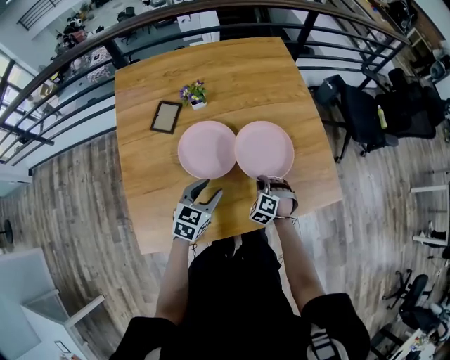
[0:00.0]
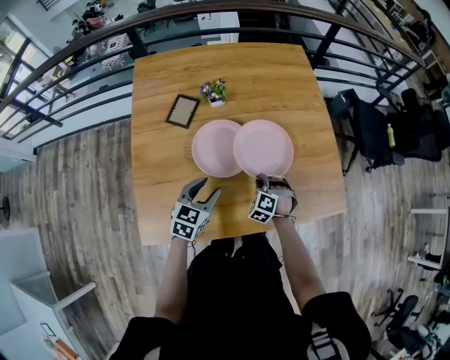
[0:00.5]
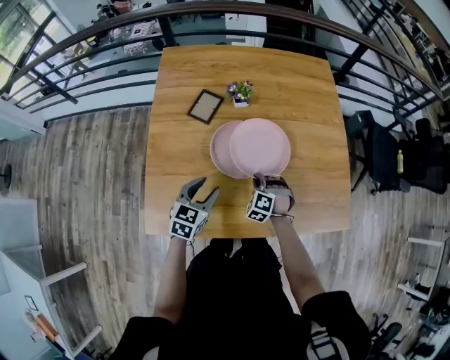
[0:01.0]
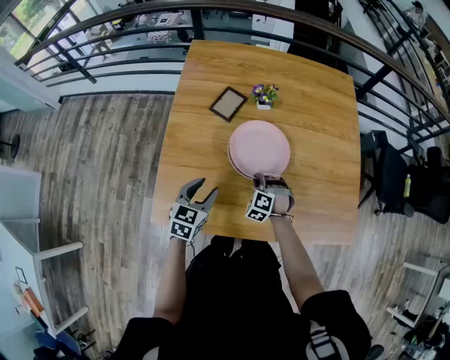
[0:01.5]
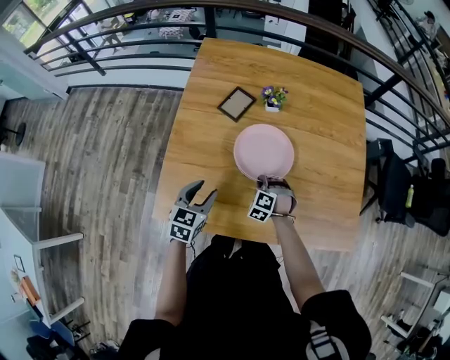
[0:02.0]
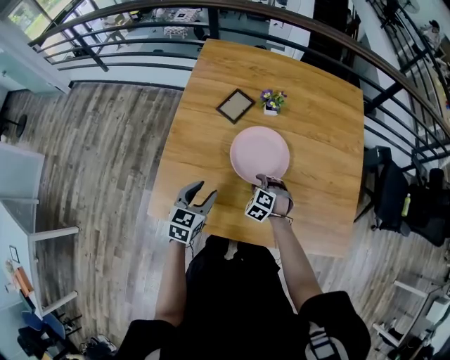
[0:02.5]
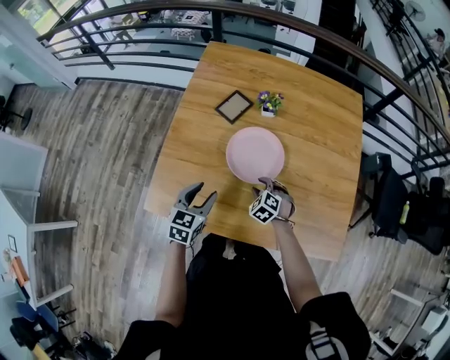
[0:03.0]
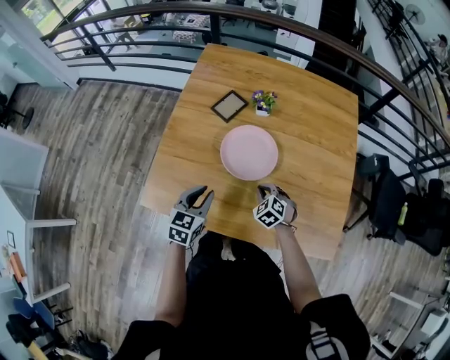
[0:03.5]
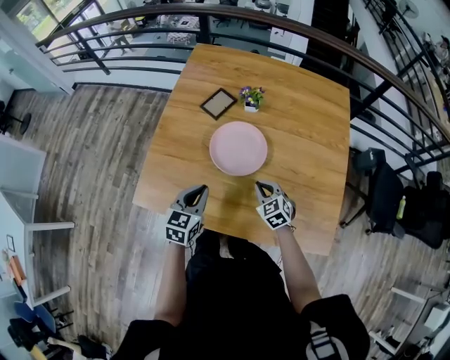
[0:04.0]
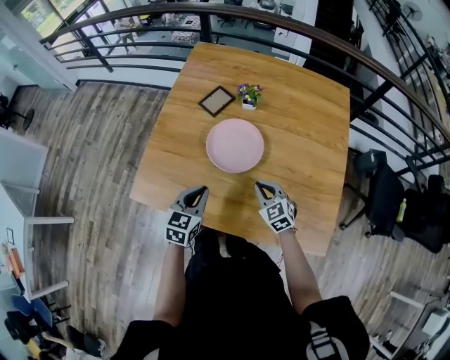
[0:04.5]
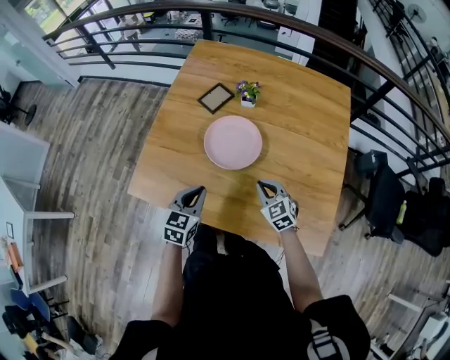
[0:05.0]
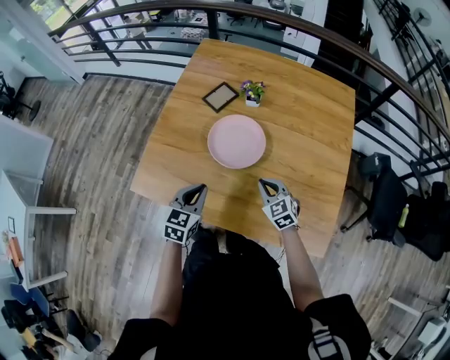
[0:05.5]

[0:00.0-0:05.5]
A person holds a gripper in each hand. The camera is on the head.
0:00.0 to 0:02.0: The left gripper moves about 15 cm, and swivels some 30 degrees, while the right gripper shifts by about 15 cm, and turns by roughly 30 degrees.
0:02.0 to 0:03.5: Both grippers move to the right, about 10 cm. The left gripper closes up. Meanwhile the right gripper rotates approximately 20 degrees, and opens, then closes again.
0:03.5 to 0:05.5: The left gripper moves some 5 cm, while the right gripper heads upward and to the right, covering roughly 10 cm, and changes its angle by approximately 20 degrees.

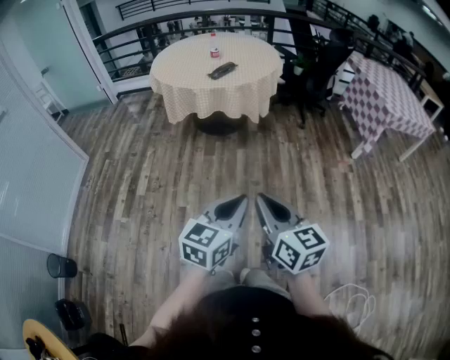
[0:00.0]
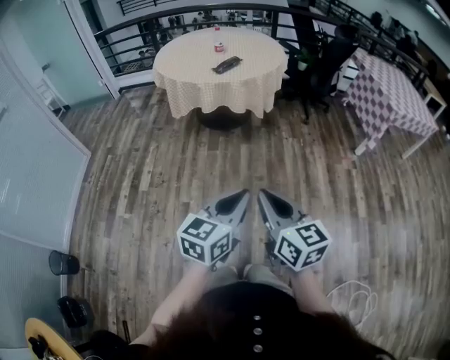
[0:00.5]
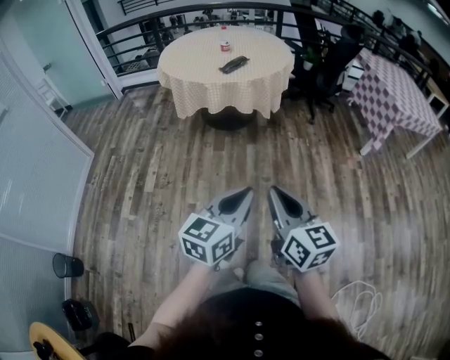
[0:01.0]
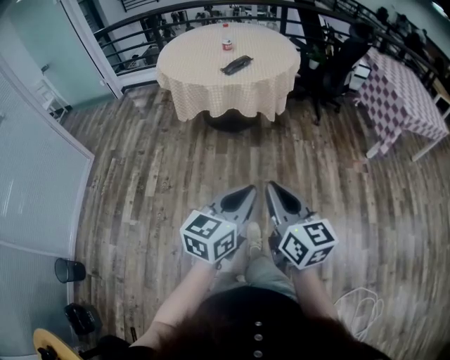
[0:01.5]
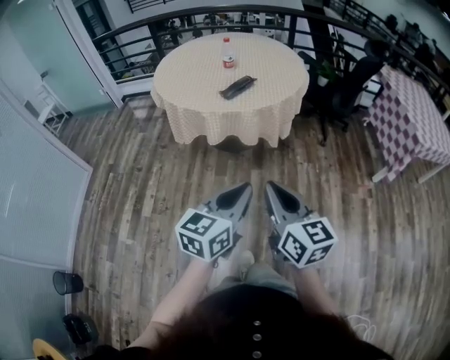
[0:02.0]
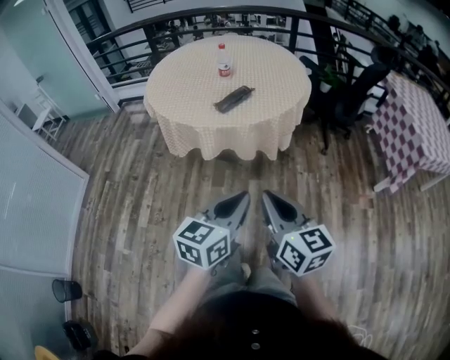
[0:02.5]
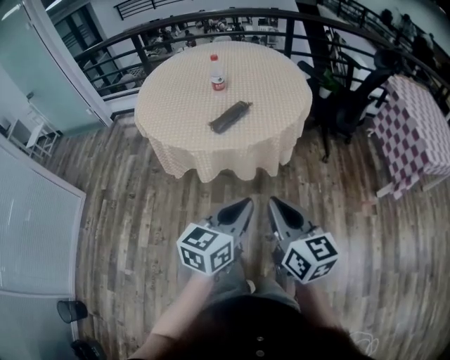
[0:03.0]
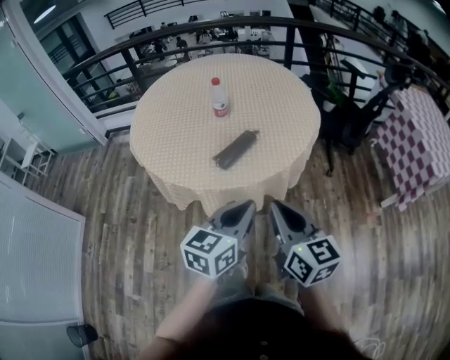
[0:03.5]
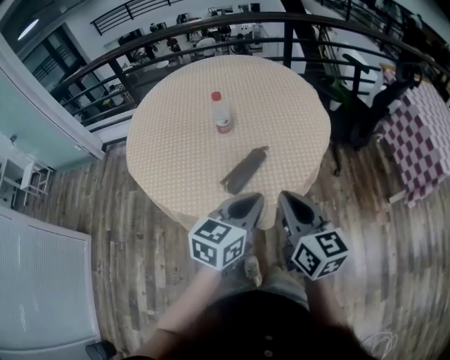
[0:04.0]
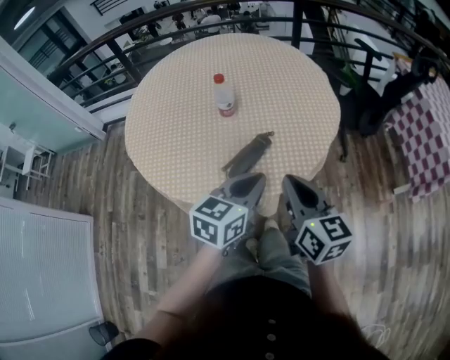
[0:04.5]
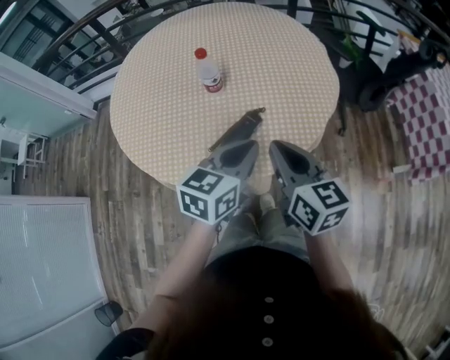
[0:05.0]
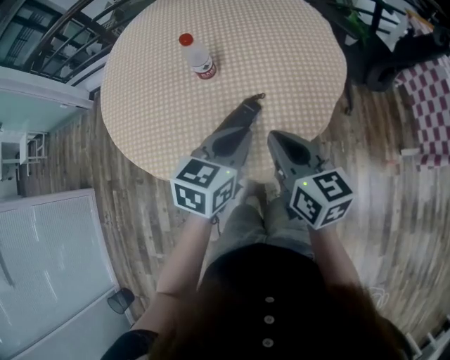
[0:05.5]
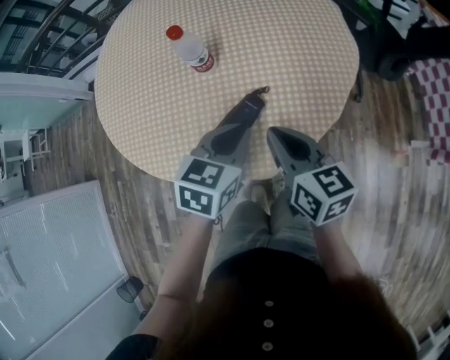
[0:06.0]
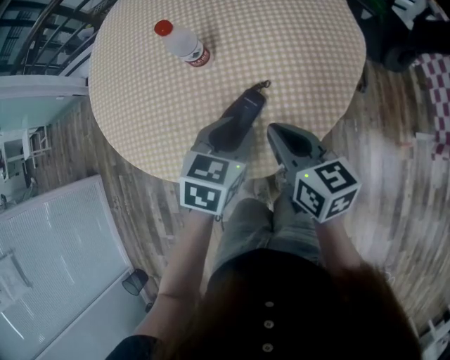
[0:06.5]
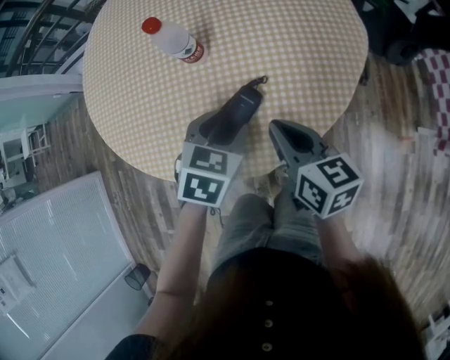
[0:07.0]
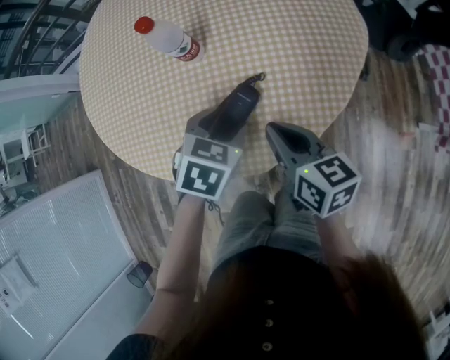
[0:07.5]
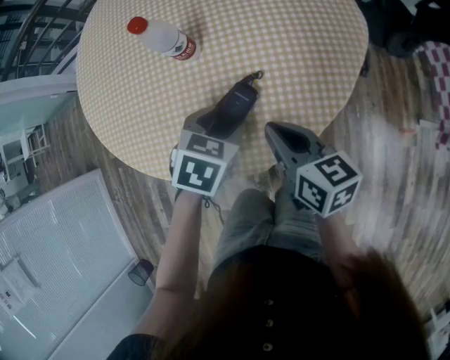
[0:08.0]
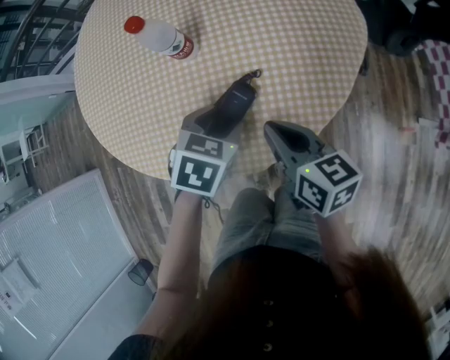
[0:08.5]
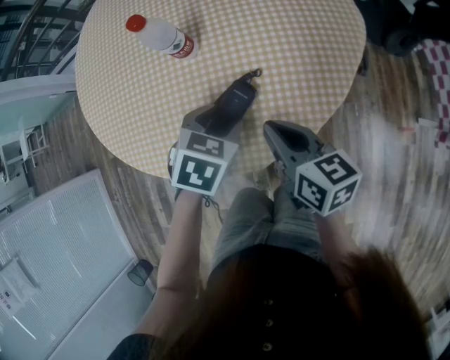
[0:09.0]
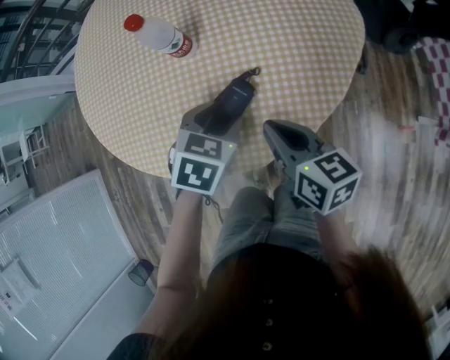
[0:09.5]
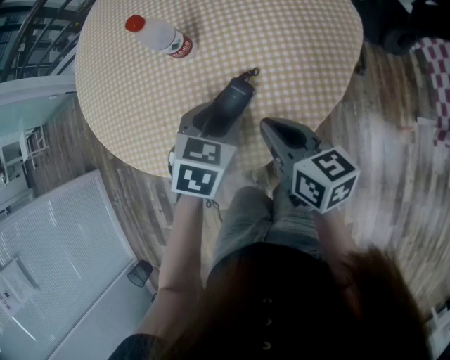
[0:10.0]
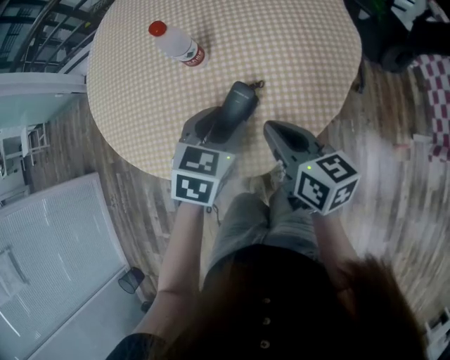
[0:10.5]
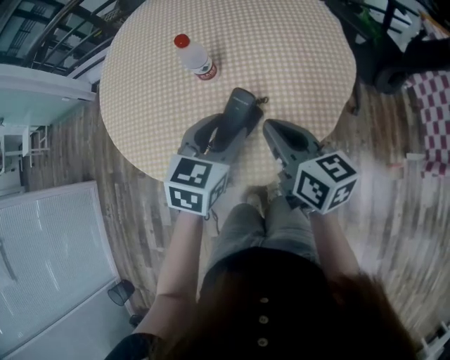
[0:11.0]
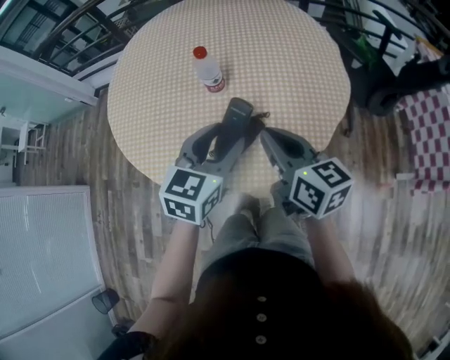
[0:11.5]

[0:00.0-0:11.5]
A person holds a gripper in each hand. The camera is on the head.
0:00.0 to 0:02.0: The two grippers go roughly 30 cm forward.
0:02.0 to 0:04.0: The two grippers travel together, forward, some 50 cm.
0:04.0 to 0:06.0: The grippers both shift forward and downward by approximately 20 cm. The left gripper swivels approximately 20 degrees.
0:06.0 to 0:07.5: The two grippers go about 5 cm downward. The left gripper changes its angle by about 20 degrees, and opens its fingers.
0:07.5 to 0:09.5: Both grippers stay about where they are.
0:09.5 to 0:11.5: The two grippers go some 15 cm upward. The left gripper tips its fingers upward by some 30 degrees.

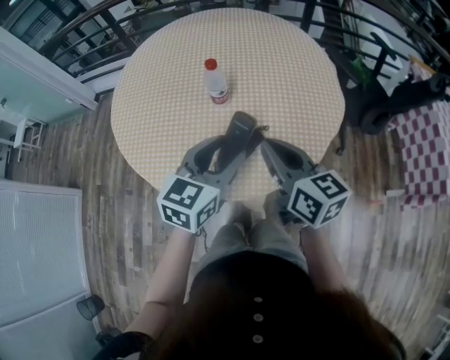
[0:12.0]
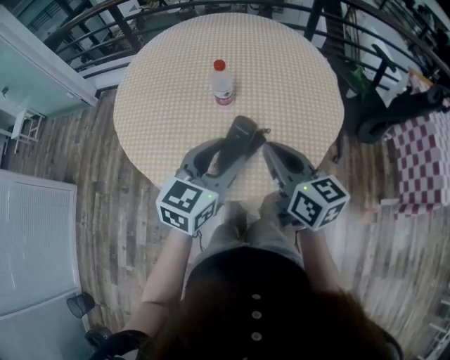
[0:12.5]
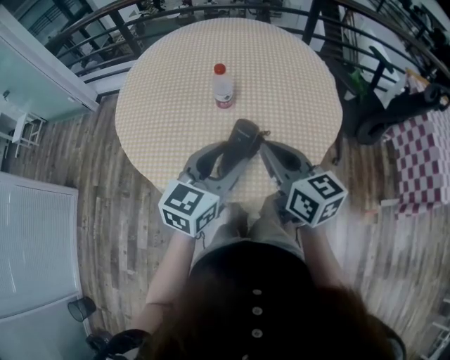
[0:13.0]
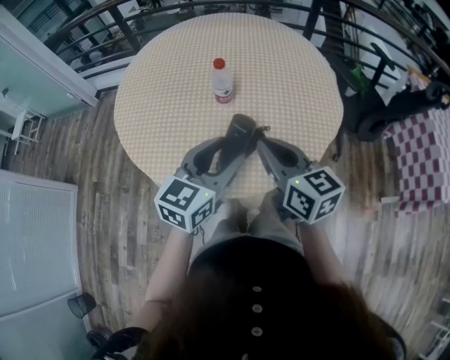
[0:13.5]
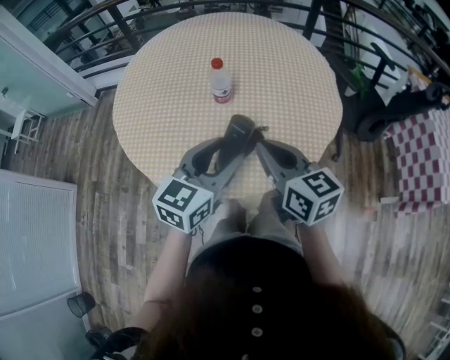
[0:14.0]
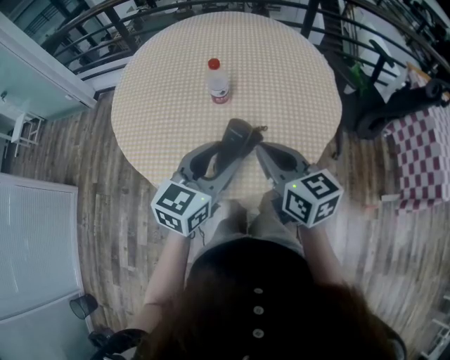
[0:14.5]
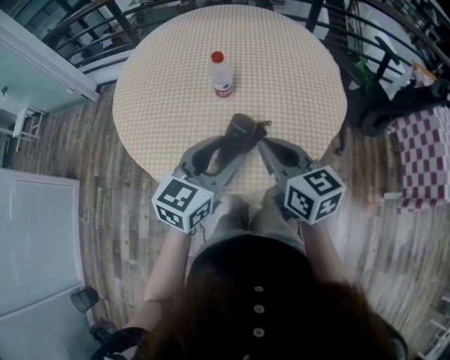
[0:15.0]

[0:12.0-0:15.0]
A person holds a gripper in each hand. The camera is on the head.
0:12.0 to 0:15.0: There are only small adjustments of the grippers.

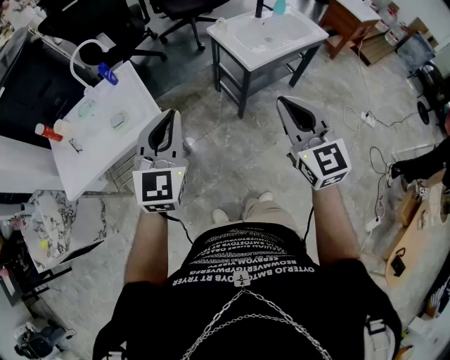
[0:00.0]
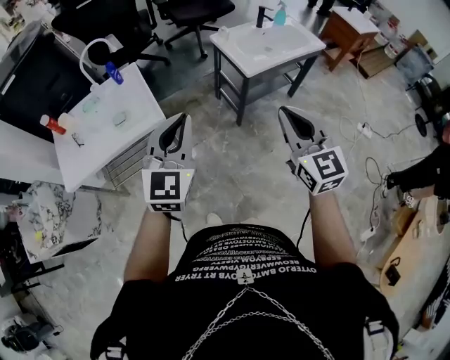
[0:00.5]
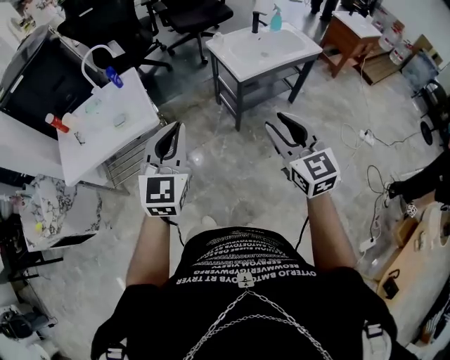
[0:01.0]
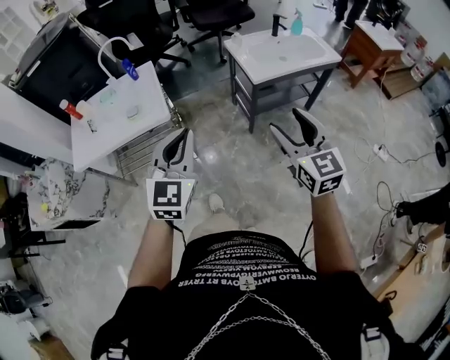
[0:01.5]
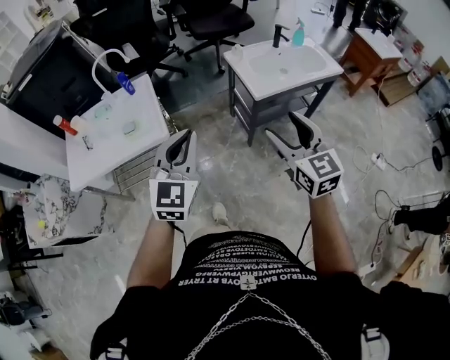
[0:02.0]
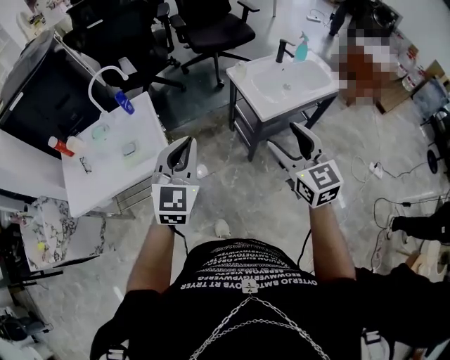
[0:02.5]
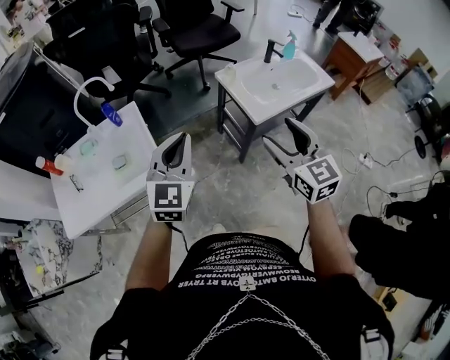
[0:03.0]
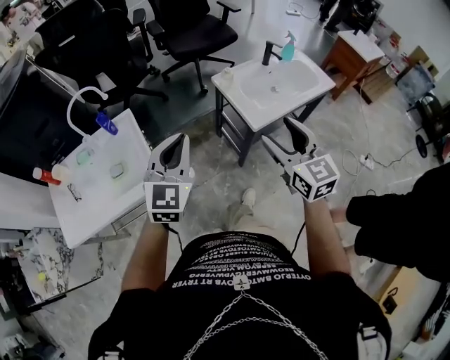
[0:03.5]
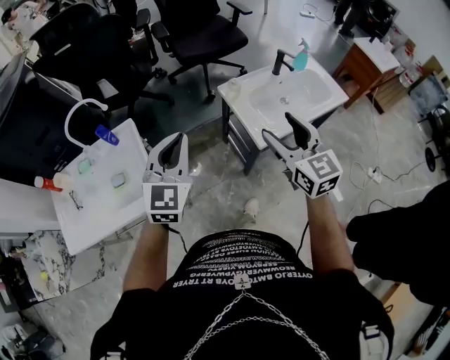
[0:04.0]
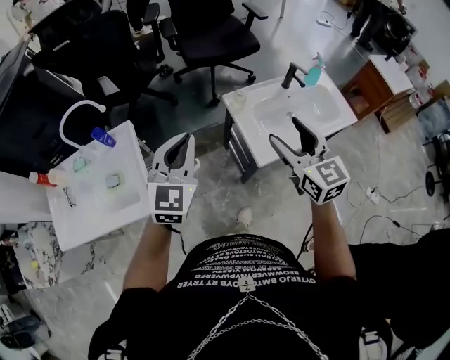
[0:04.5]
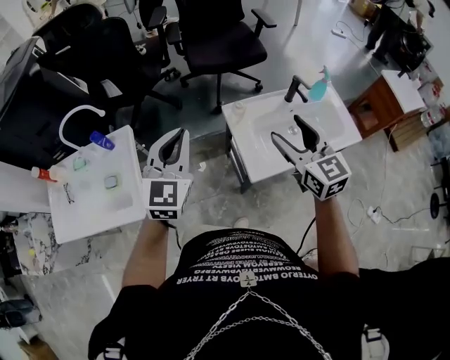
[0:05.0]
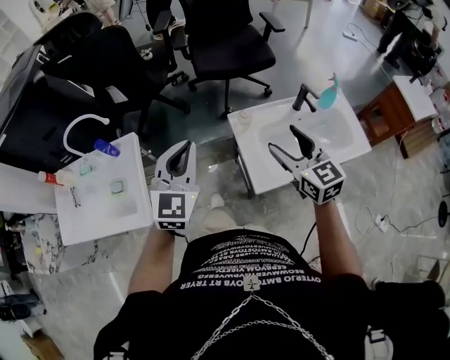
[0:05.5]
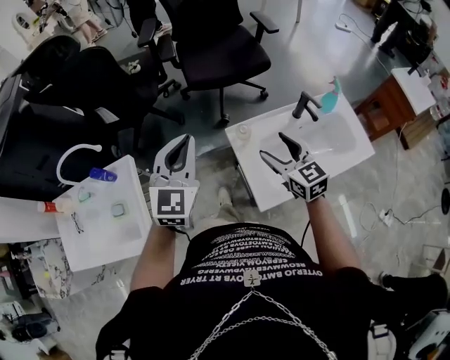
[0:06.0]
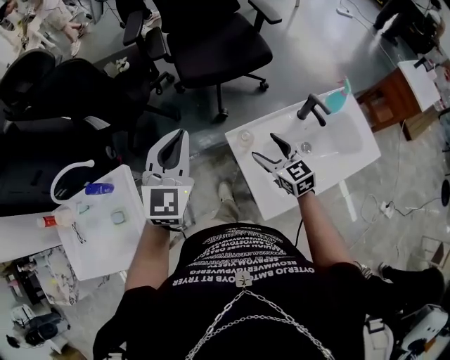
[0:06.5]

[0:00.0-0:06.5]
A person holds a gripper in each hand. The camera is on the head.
0:00.0 to 0:02.0: Both grippers move to the right, approximately 10 cm. The left gripper moves roughly 10 cm backward and comes back. The right gripper goes backward and returns, approximately 10 cm each way, and opens up.
0:02.0 to 0:04.5: Both grippers travel together forward, roughly 40 cm.
0:04.5 to 0:06.5: The left gripper moves forward, roughly 30 cm. The right gripper is displaced forward and downward by some 35 cm.
